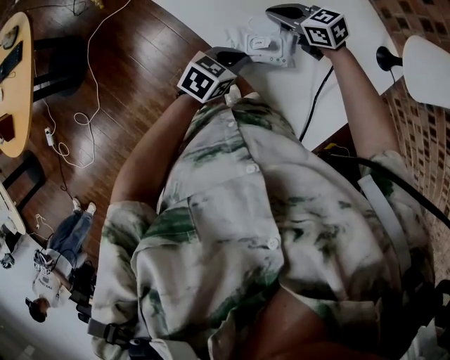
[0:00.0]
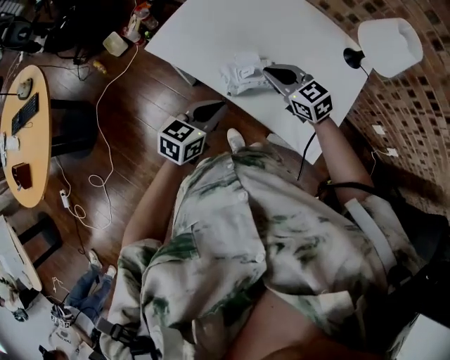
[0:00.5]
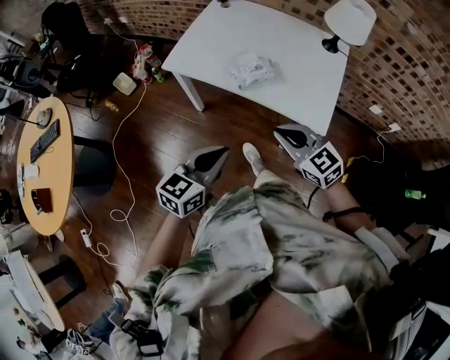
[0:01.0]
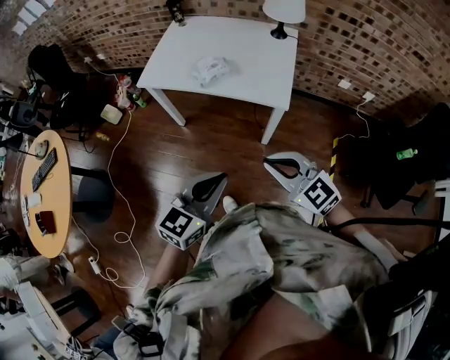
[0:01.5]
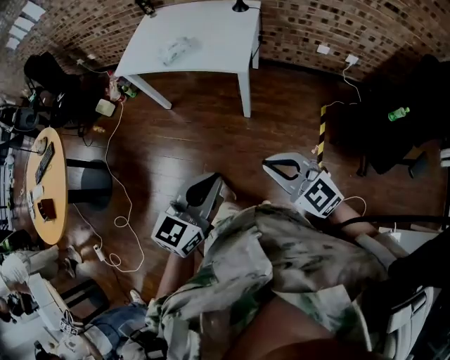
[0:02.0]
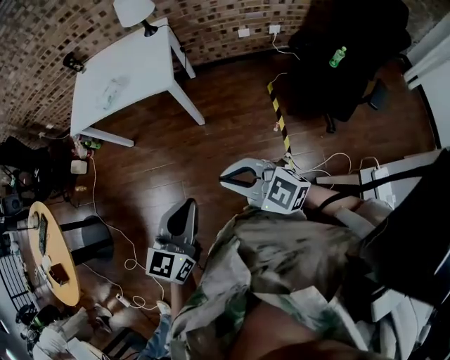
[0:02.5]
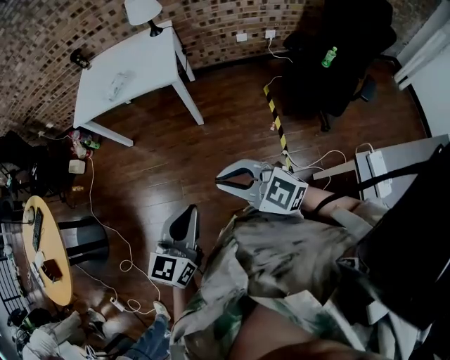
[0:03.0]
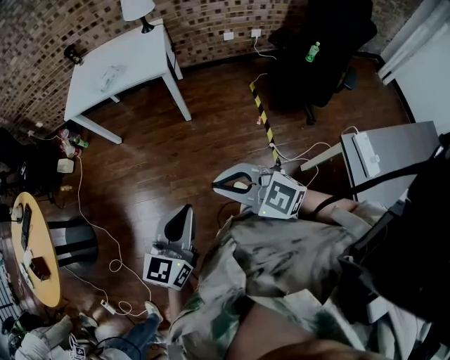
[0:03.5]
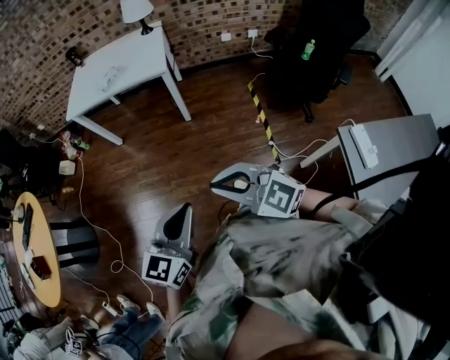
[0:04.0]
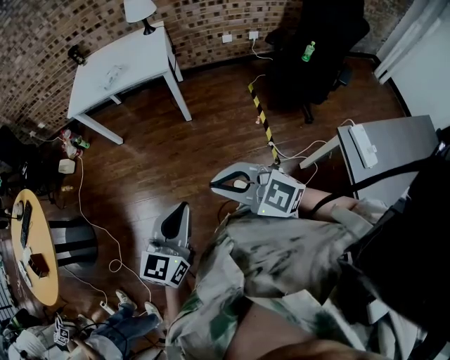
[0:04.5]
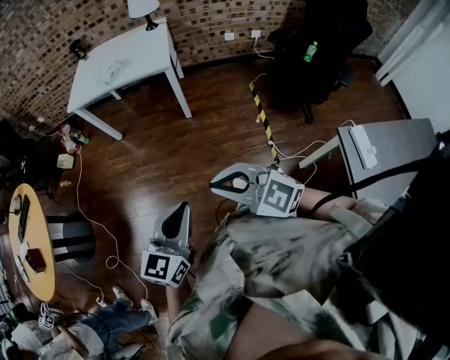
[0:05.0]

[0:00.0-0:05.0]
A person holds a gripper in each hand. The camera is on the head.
0:00.0 to 0:02.5: The pair of grippers is taken roughly 80 cm. The right gripper turns by about 50 degrees. The left gripper rotates approximately 40 degrees.
0:02.5 to 0:05.0: Both grippers travel together backward and to the left, some 25 cm.

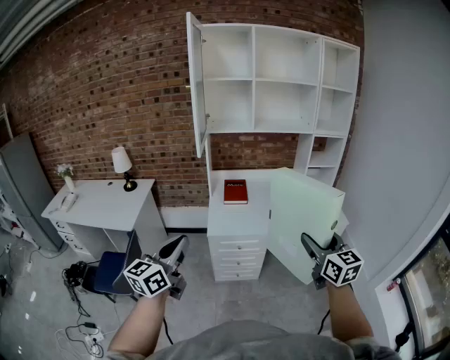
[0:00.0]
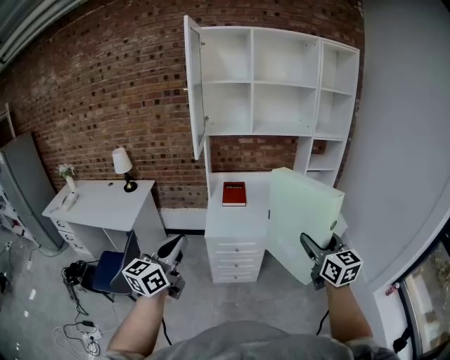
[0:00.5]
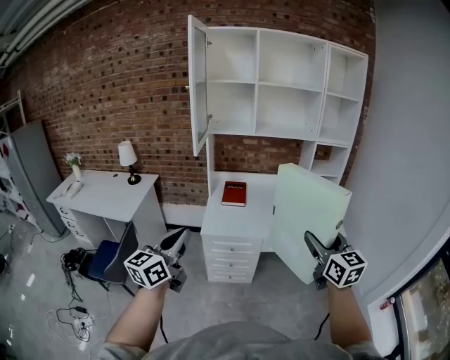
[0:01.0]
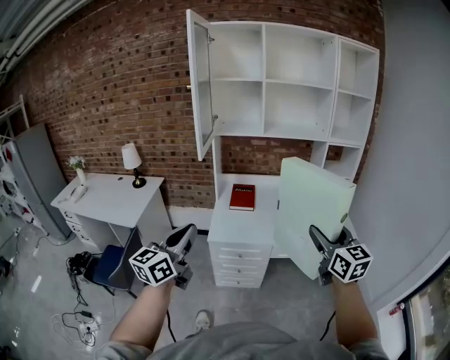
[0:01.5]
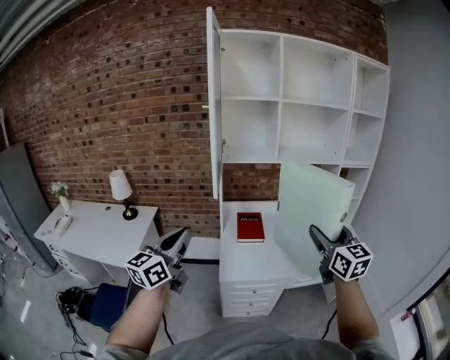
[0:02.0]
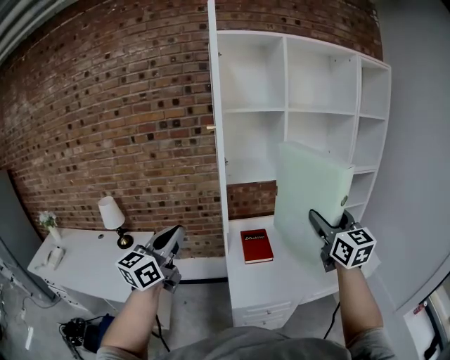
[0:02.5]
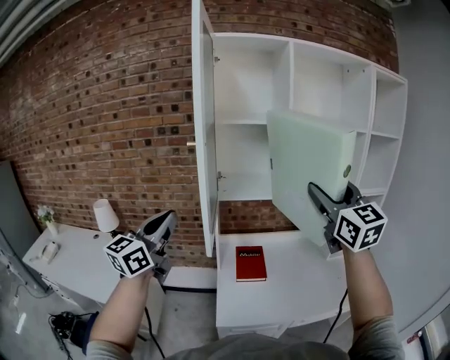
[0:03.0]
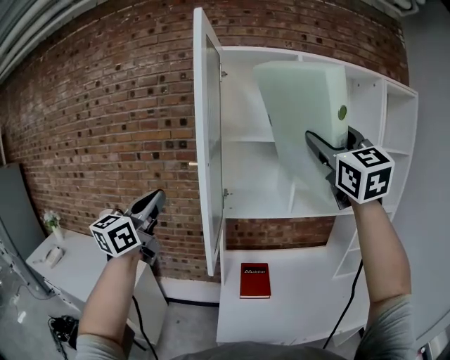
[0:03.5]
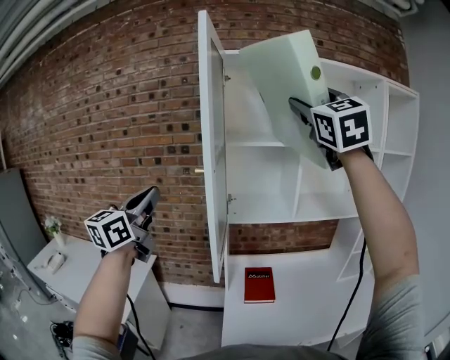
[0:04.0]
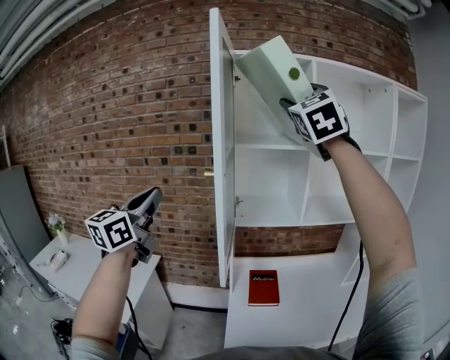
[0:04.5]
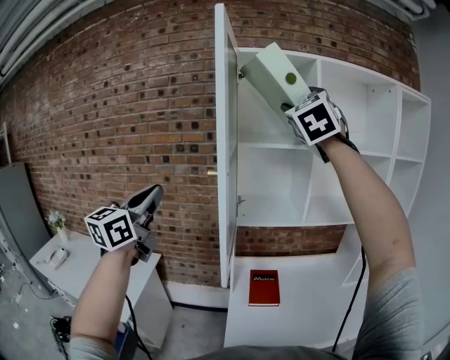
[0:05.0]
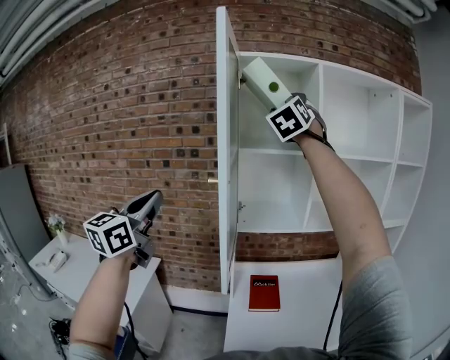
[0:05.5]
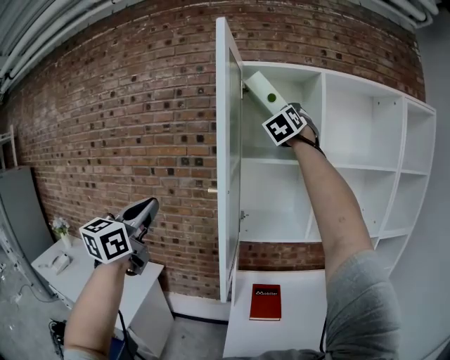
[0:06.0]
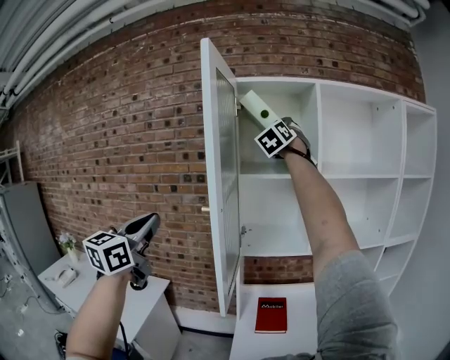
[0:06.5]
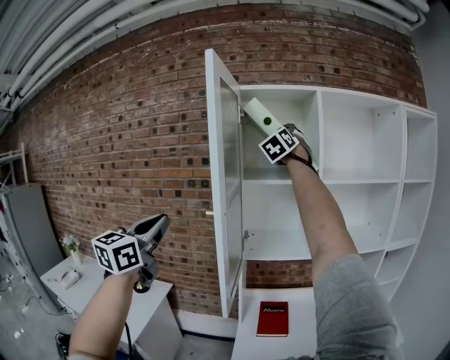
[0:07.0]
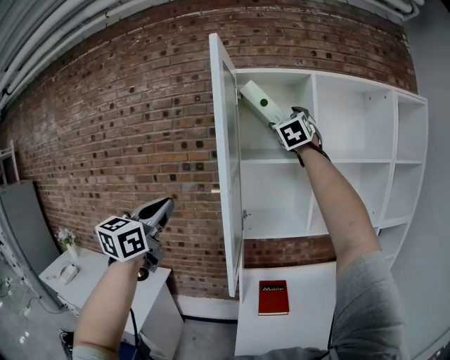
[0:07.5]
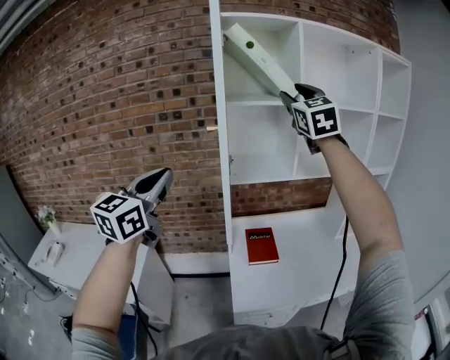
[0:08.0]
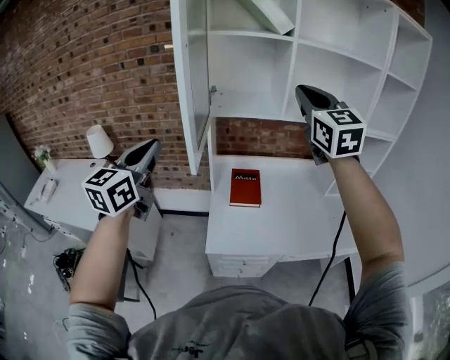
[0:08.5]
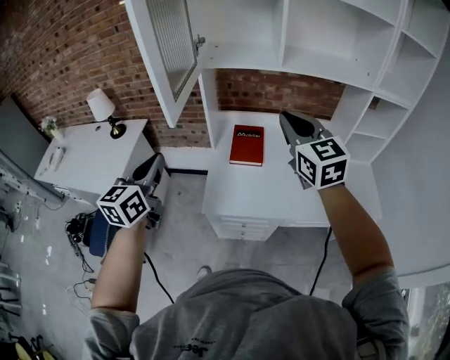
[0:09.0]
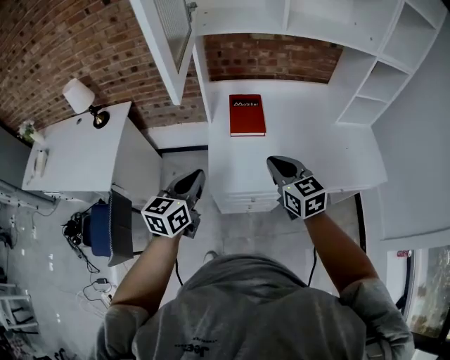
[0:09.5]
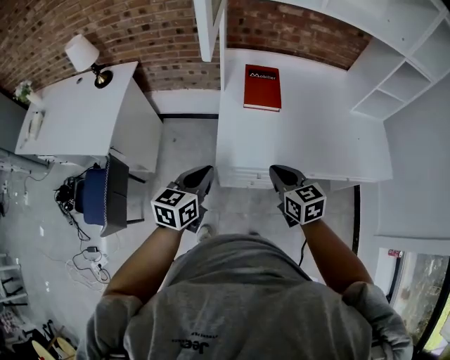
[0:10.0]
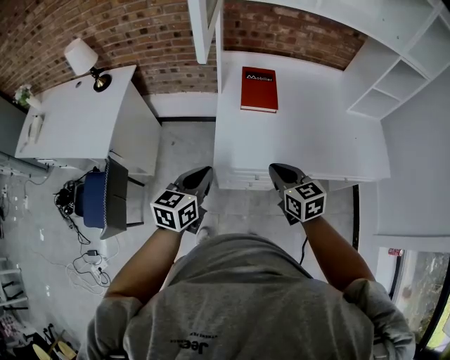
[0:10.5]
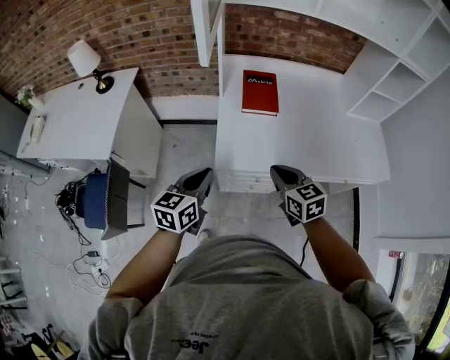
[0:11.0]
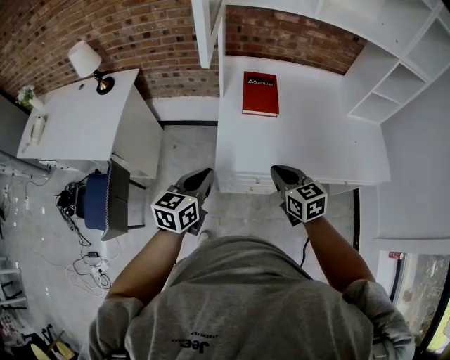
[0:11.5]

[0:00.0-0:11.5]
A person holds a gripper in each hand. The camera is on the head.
0:00.0 to 0:02.0: The right gripper heads forward, covering approximately 20 cm. Meanwhile the left gripper heads forward and to the left, covering roughly 25 cm.
0:02.0 to 0:04.0: The left gripper shifts some 35 cm forward, upward and to the left. Meanwhile the right gripper heads upward and forward, covering some 50 cm, and swivels some 40 degrees.
0:04.0 to 0:06.0: The right gripper is displaced forward and to the left by approximately 25 cm, and turns by about 20 degrees.
0:06.0 to 0:07.5: The grippers stay close to where they were, moving slightly.
0:07.5 to 0:09.5: The left gripper heads downward, covering about 50 cm, and rotates some 40 degrees. The right gripper moves downward and backward, about 70 cm, points its fingers some 30 degrees further downward, and closes its fingers.
0:09.5 to 0:11.5: The right gripper travels downward and backward by approximately 10 cm; the left gripper goes some 5 cm downward.

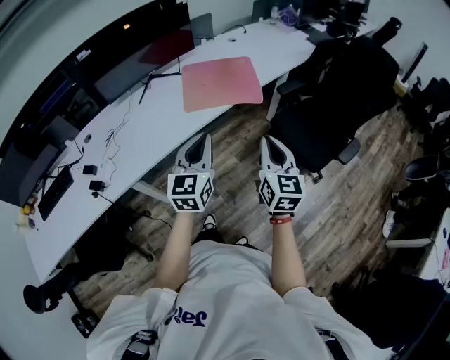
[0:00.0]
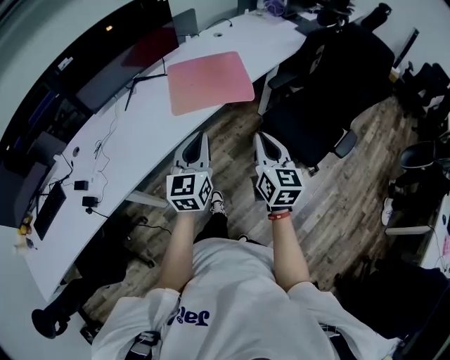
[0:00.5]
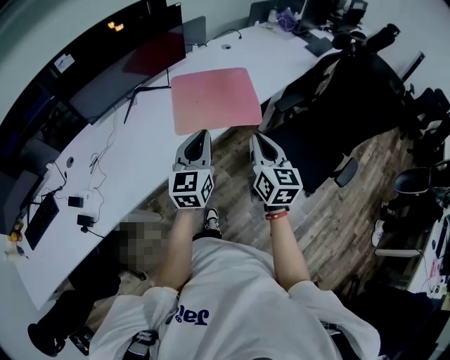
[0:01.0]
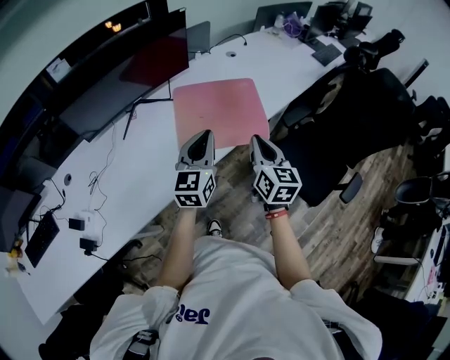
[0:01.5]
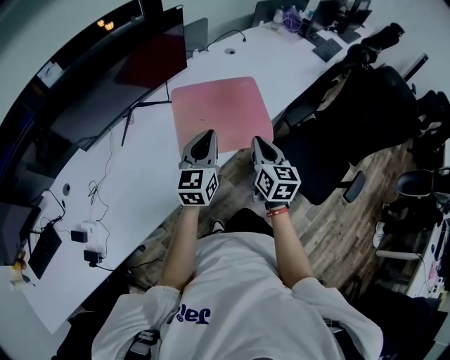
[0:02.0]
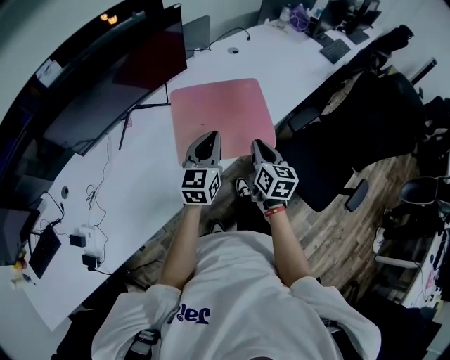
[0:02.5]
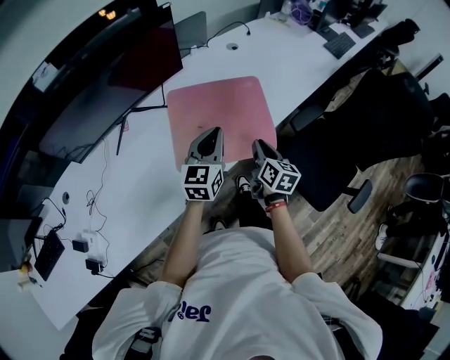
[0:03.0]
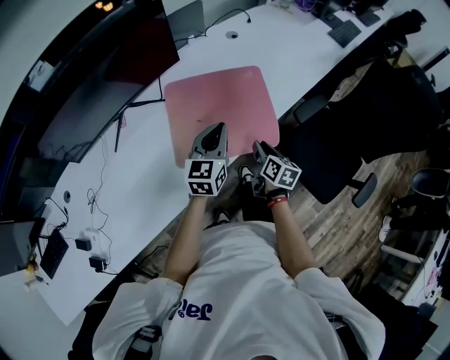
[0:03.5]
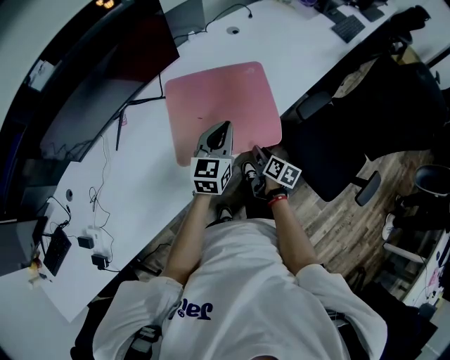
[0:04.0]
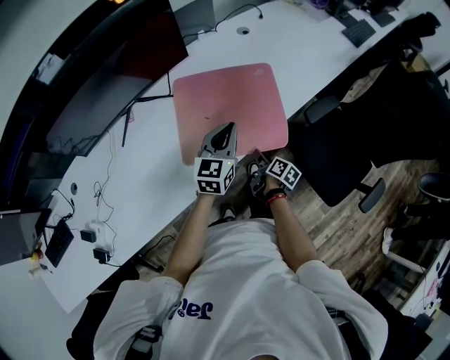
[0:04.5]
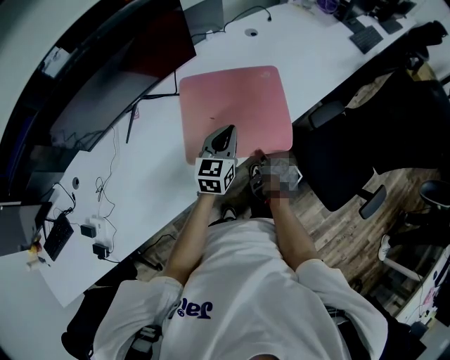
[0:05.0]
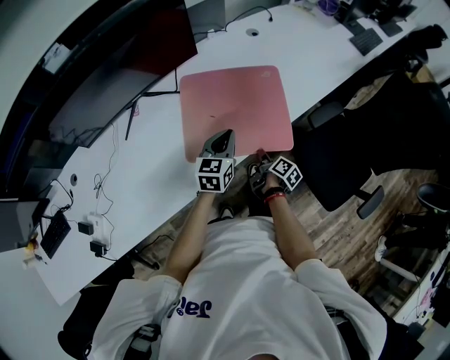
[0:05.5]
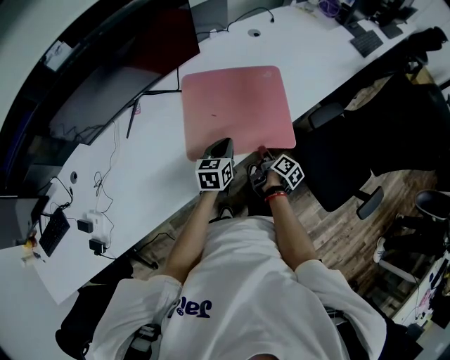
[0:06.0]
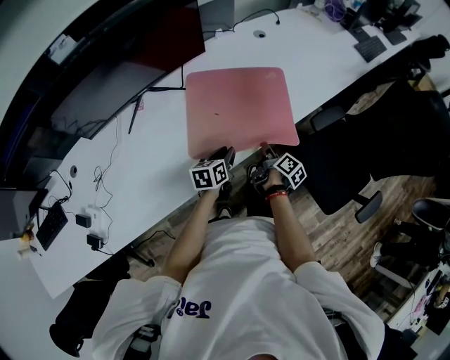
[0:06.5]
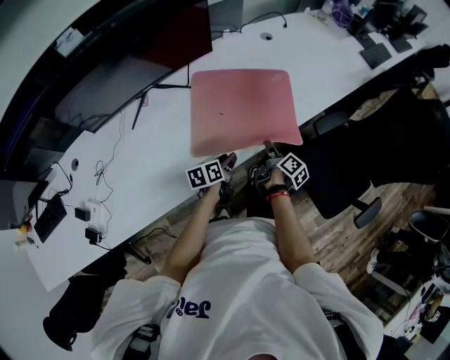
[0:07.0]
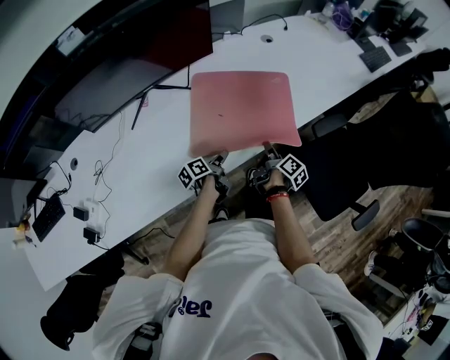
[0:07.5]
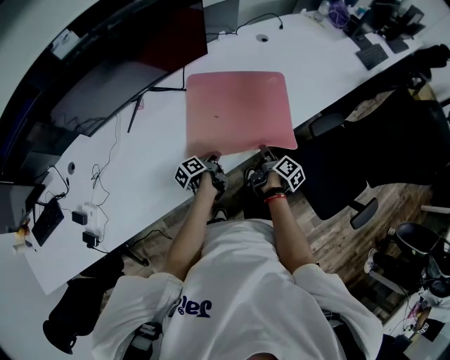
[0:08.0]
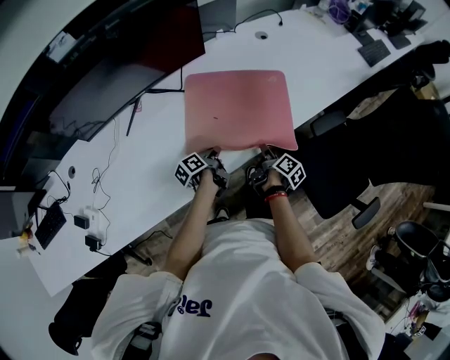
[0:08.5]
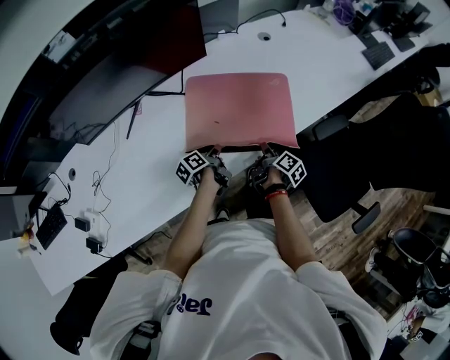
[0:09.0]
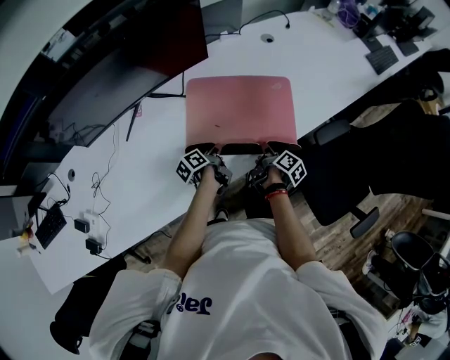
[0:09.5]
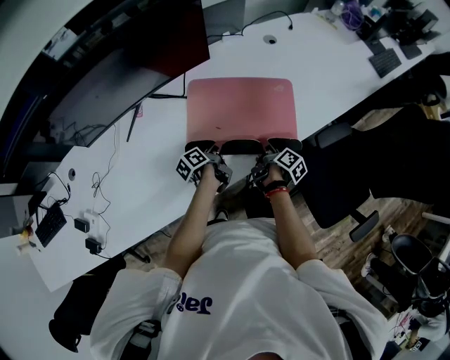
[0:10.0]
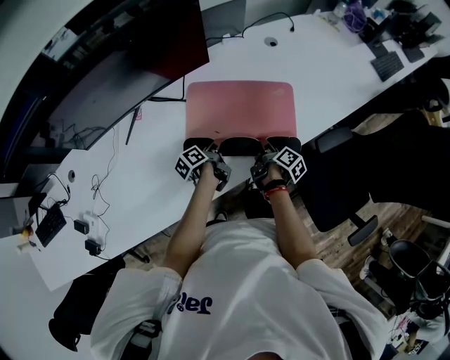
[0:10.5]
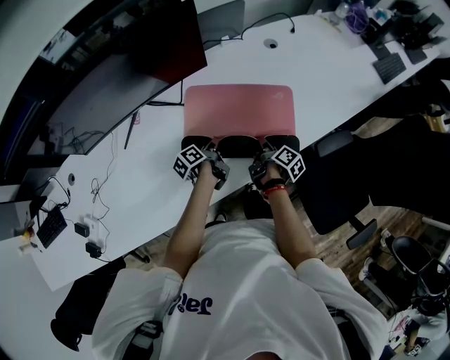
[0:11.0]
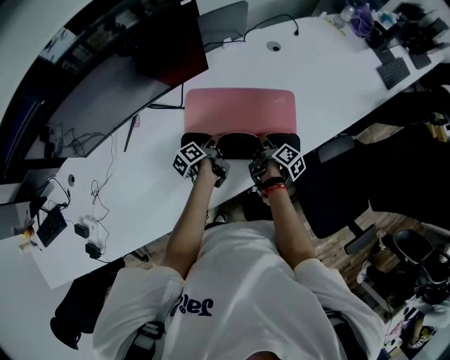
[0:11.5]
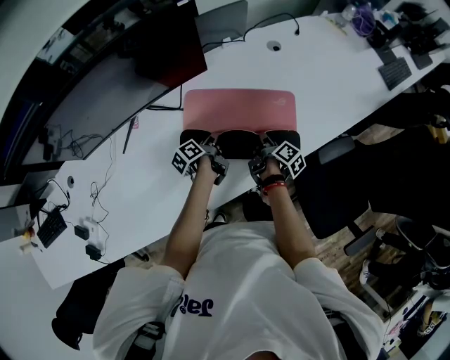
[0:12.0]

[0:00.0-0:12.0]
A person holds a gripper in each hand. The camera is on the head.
0:00.0 to 0:02.0: The grippers both shift forward by approximately 35 cm.
0:02.0 to 0:04.0: The left gripper moves forward, downward and to the right, approximately 20 cm, while the right gripper heads downward and forward, covering about 25 cm, rotates about 40 degrees, and opens up.
0:04.0 to 0:06.0: The left gripper travels downward by roughly 10 cm, and turns by some 20 degrees, while the right gripper turns by approximately 20 degrees, and closes its fingers.
0:06.0 to 0:08.0: The left gripper heads downward and to the left, covering some 10 cm, twists approximately 70 degrees counterclockwise, seen from behind, and opens and closes again.
0:08.0 to 0:10.0: The grippers both shift forward by about 10 cm.
0:10.0 to 0:12.0: The grippers both shift forward by about 10 cm.
